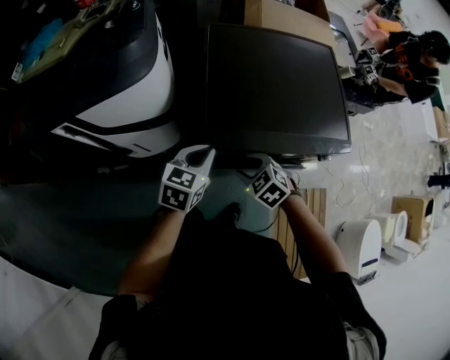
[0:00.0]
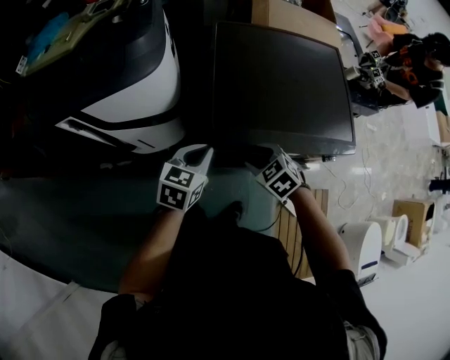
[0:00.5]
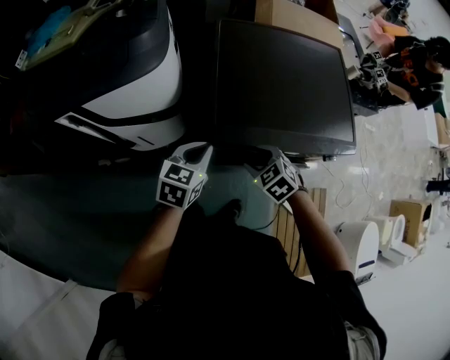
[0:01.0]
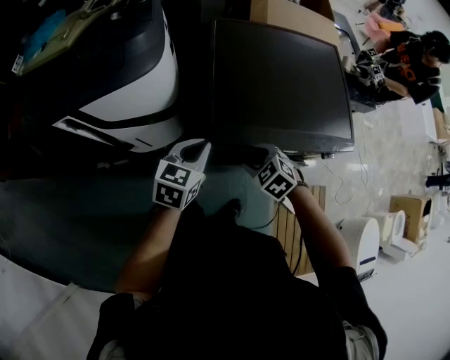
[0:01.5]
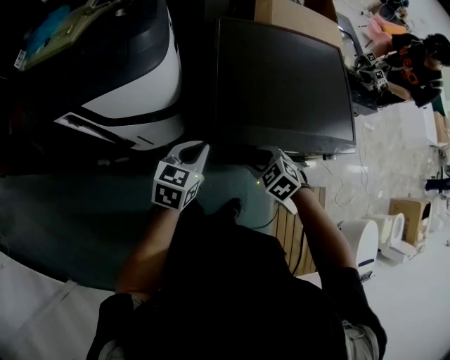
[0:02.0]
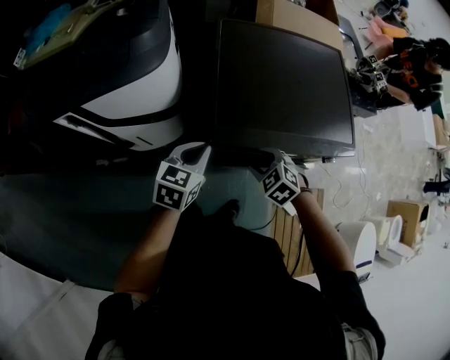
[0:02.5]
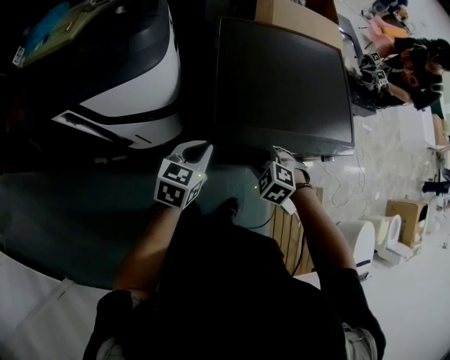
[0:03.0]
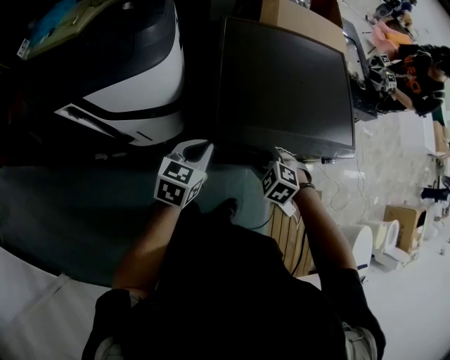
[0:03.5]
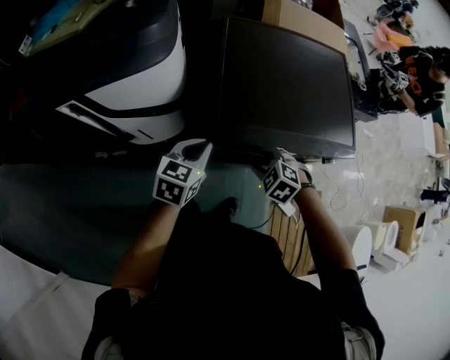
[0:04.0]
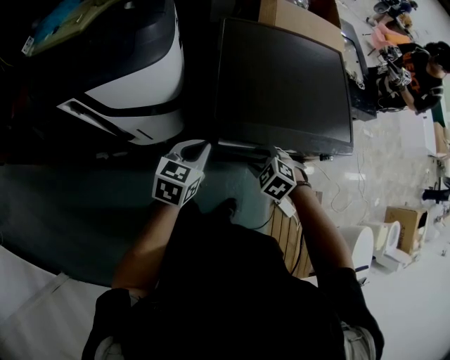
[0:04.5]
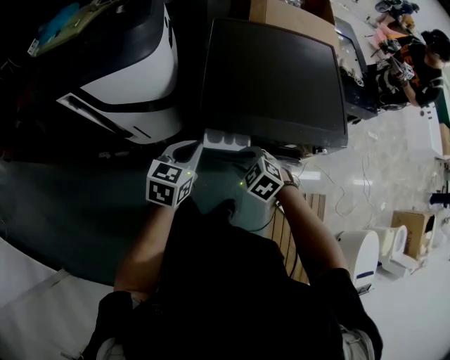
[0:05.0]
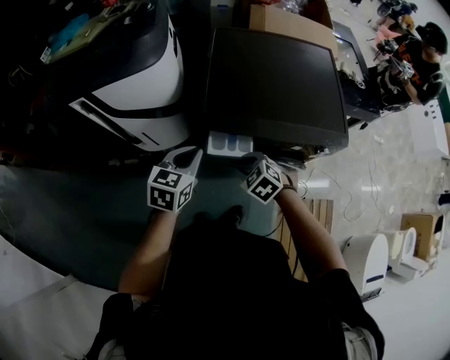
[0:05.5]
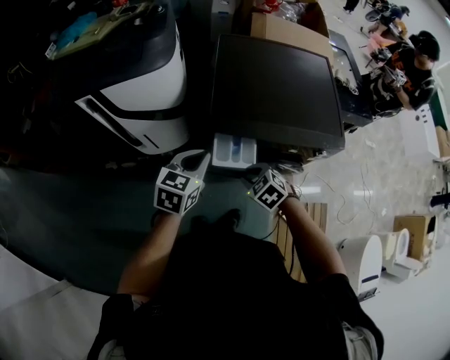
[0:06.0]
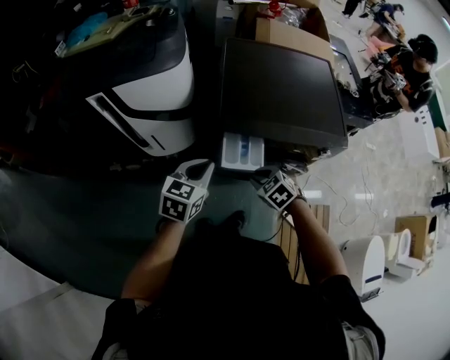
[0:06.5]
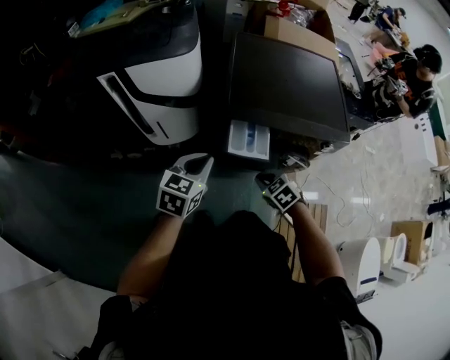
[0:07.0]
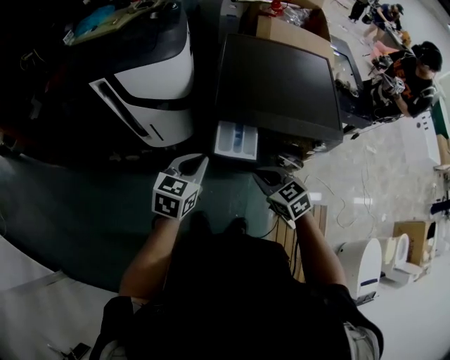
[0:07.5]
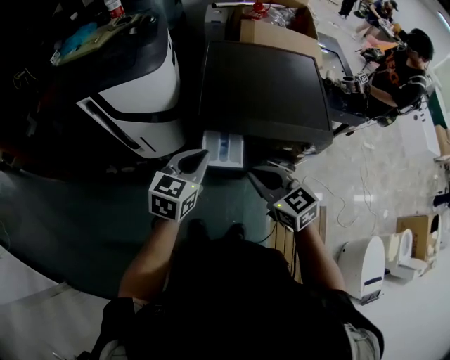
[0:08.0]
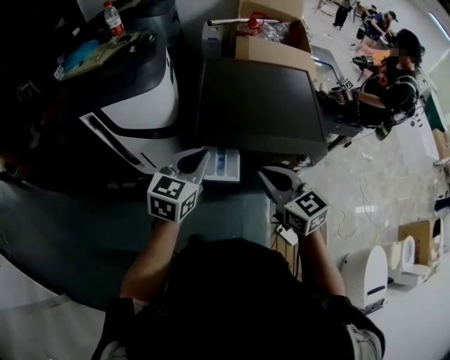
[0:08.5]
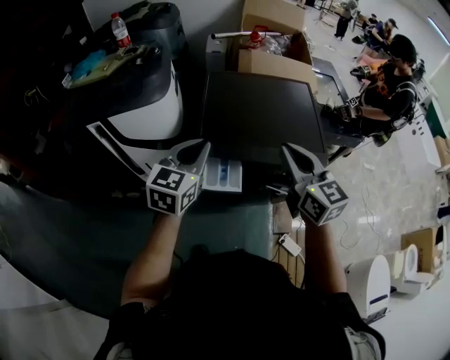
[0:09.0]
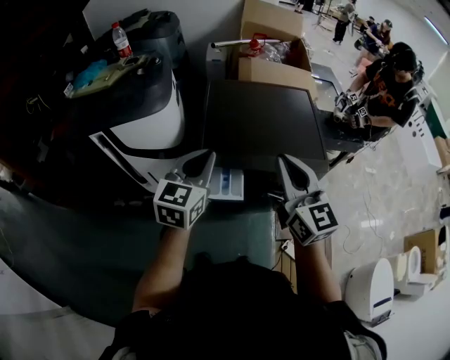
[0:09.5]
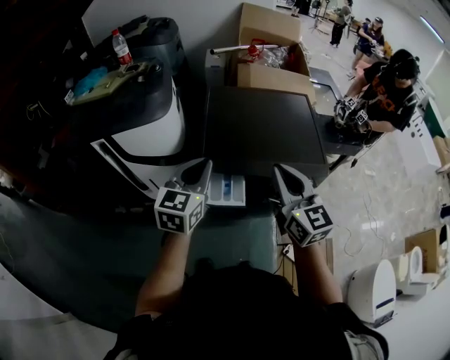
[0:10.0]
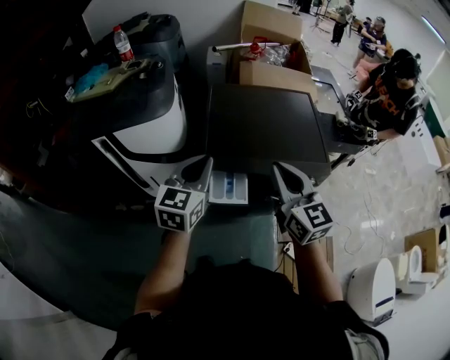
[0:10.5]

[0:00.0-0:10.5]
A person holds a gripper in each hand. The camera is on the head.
0:00.0 to 0:02.0: There are only small adjustments of the grippers.
0:02.0 to 0:04.0: The grippers make only small movements.
0:04.0 to 0:06.5: Both grippers travel together backward, some 15 cm.
0:06.5 to 0:08.5: The right gripper heads upward, covering roughly 25 cm, angles its fingers upward, by roughly 40 degrees, and closes its fingers; the left gripper moves upward and to the right, roughly 15 cm.
0:08.5 to 0:10.5: The left gripper heads upward, covering roughly 5 cm. Meanwhile the right gripper is displaced upward by some 10 cm, and swivels approximately 20 degrees.

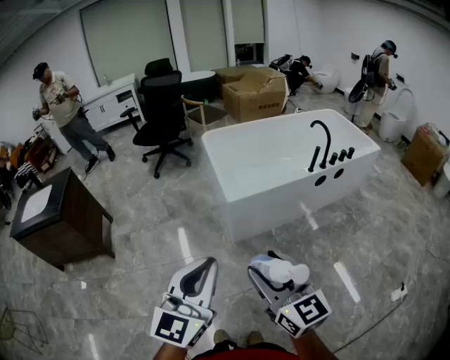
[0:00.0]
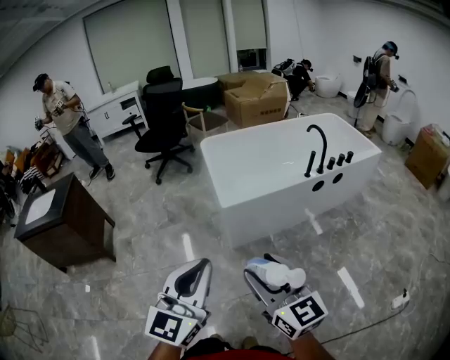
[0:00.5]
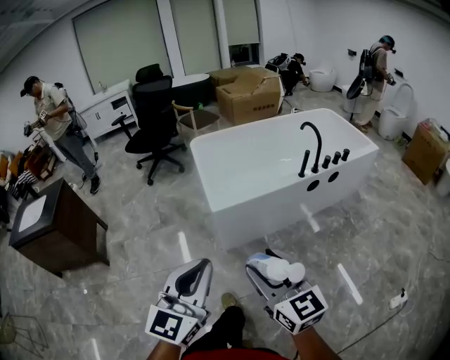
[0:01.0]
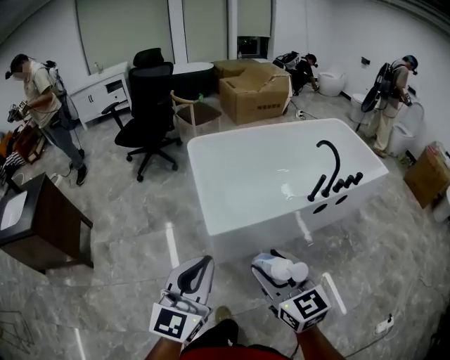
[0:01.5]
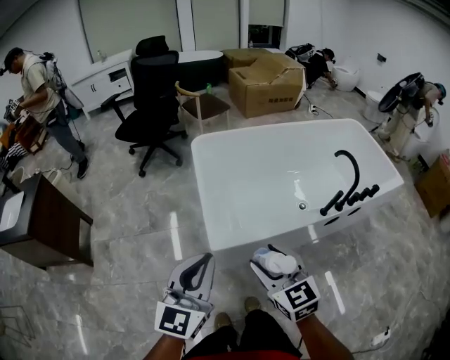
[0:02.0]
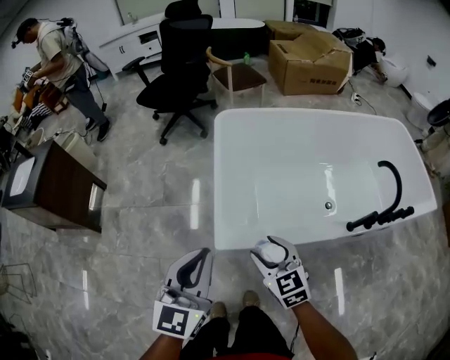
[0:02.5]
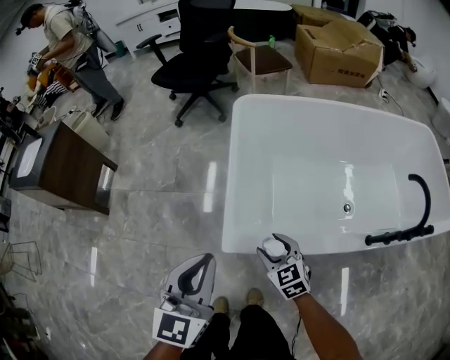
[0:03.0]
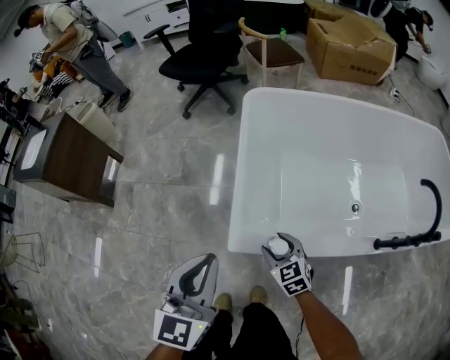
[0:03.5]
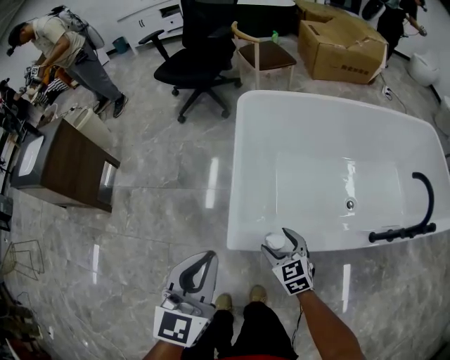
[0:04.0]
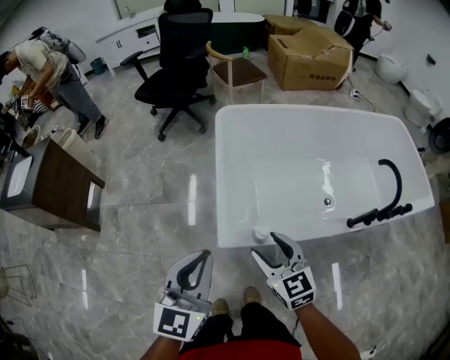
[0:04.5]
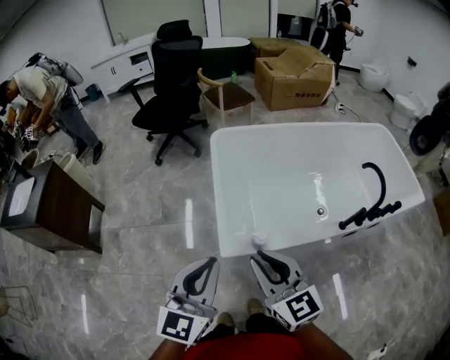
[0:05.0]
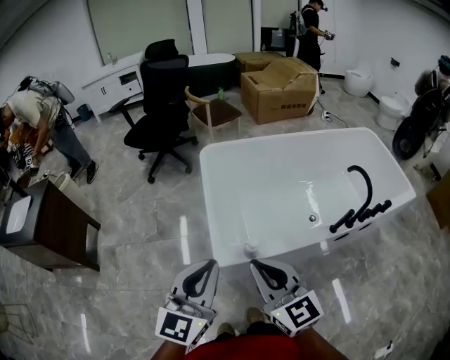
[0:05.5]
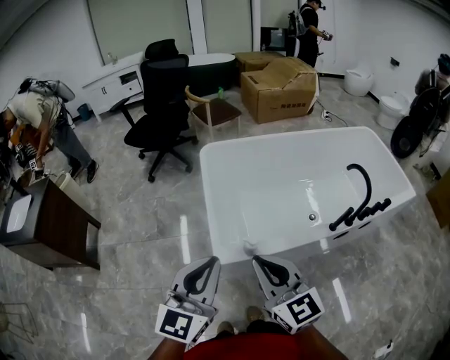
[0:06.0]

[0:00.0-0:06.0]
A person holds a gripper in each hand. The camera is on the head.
0:00.0 to 0:02.0: Both grippers are carried forward, some 40 cm. The right gripper rotates roughly 20 degrees.
0:02.0 to 0:04.0: The left gripper moves forward and downward, roughly 15 cm, and rotates some 20 degrees, while the right gripper heads downward and forward, covering some 35 cm, and swivels roughly 20 degrees.
0:04.0 to 0:06.0: The right gripper moves upward and backward, roughly 35 cm, tilts its fingers about 30 degrees upward, and closes its fingers. Meanwhile the left gripper moves upward and backward, about 15 cm, and rotates approximately 20 degrees.

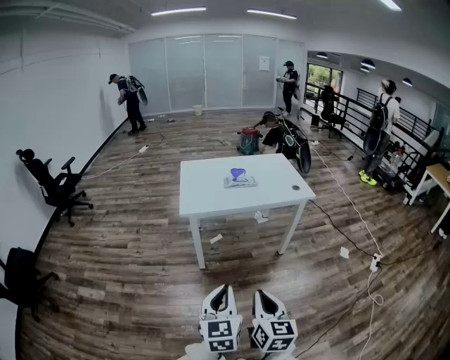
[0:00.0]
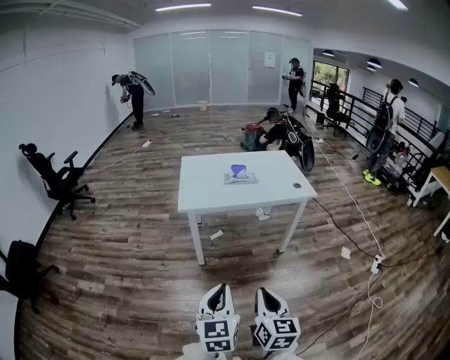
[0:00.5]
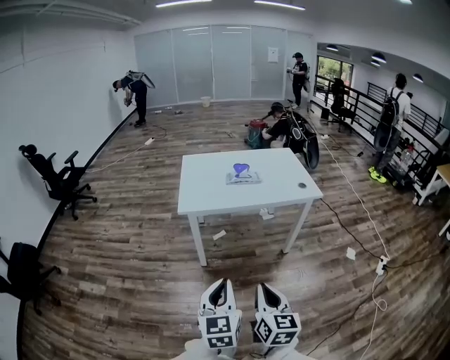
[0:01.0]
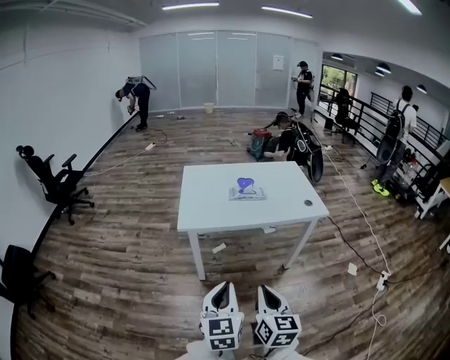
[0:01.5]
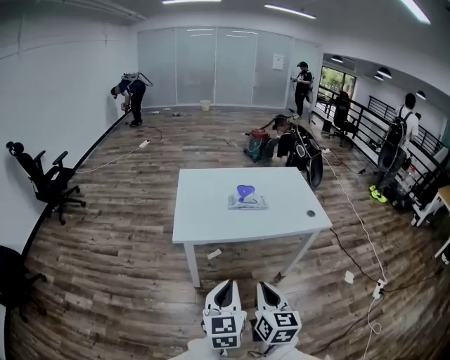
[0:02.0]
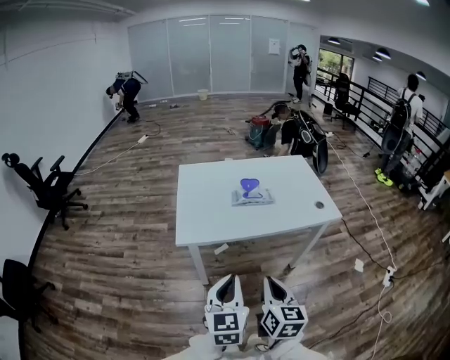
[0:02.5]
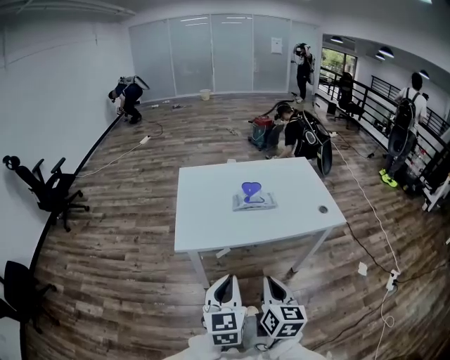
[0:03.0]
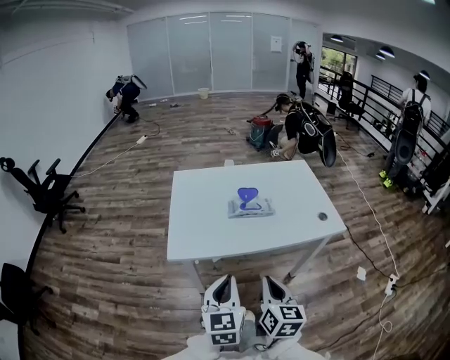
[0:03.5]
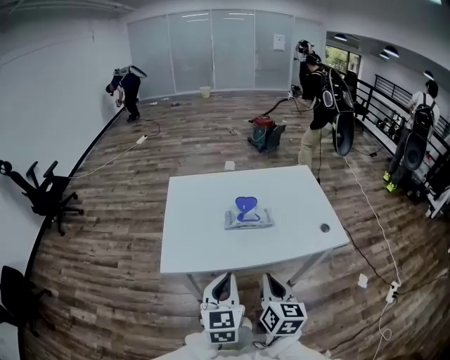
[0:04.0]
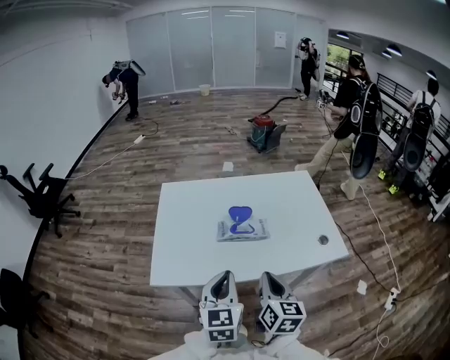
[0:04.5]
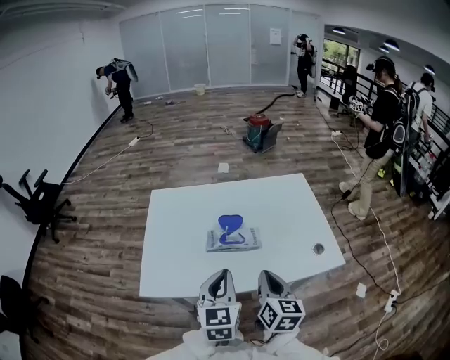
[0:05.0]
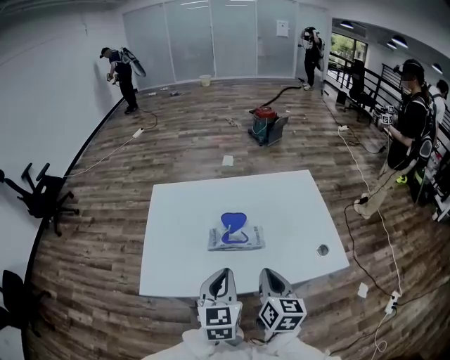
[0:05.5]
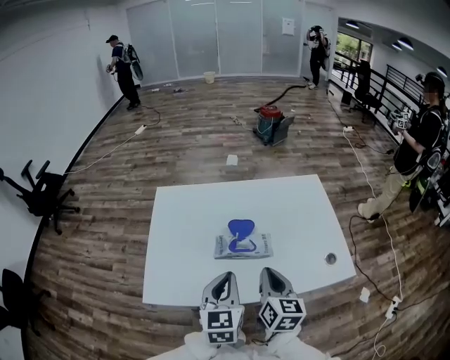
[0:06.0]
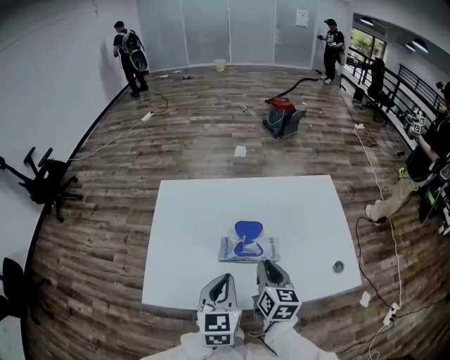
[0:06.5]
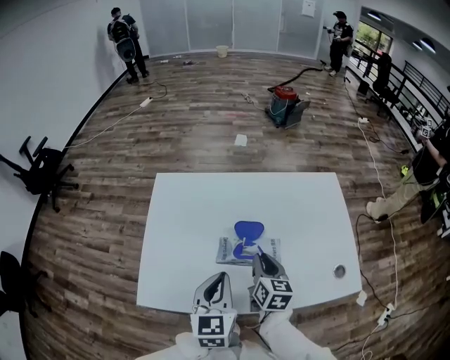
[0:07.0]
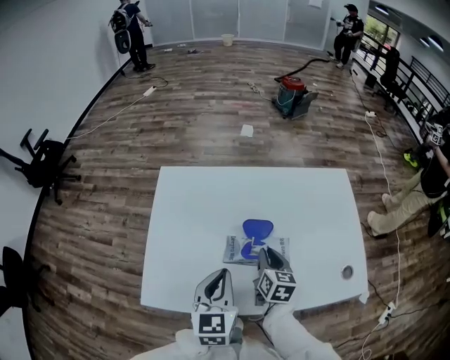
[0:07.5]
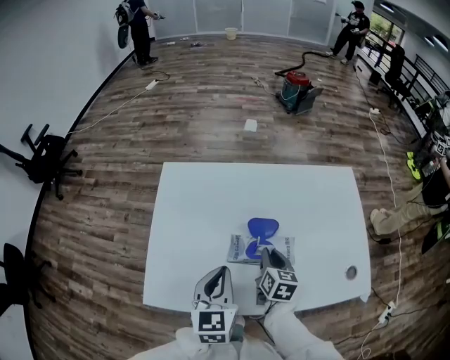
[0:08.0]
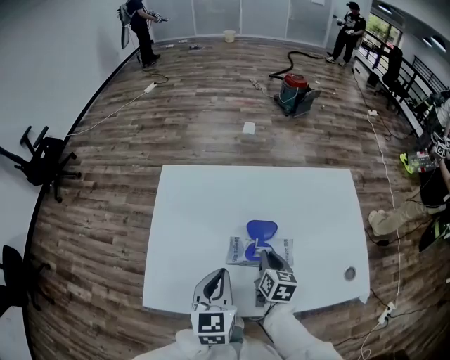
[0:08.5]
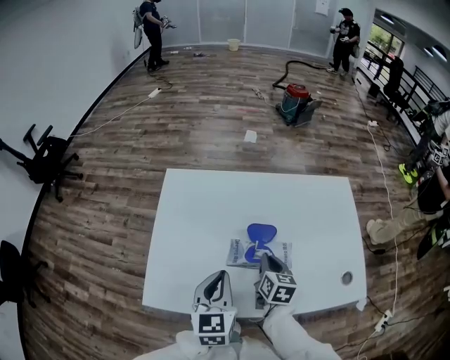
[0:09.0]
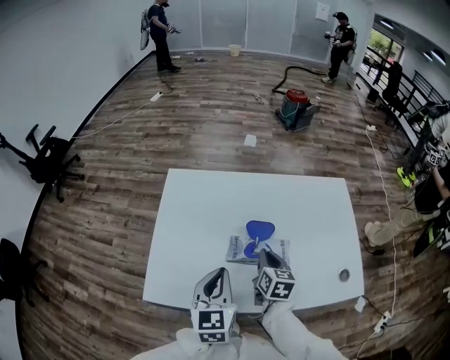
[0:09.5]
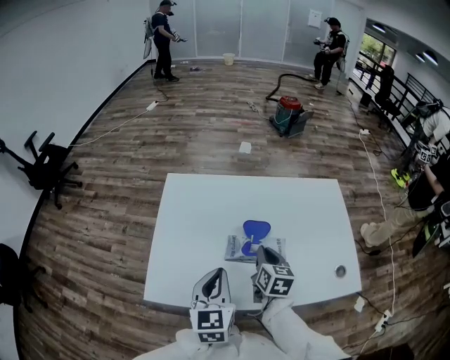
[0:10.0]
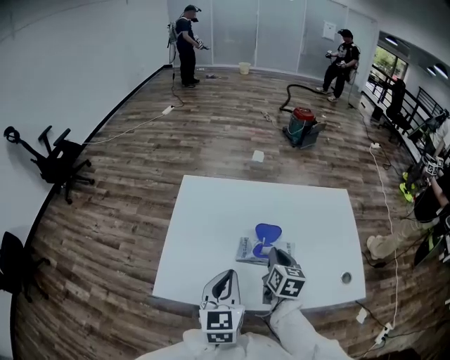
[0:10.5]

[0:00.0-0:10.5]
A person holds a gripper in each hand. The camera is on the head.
0:00.0 to 0:02.0: The grippers both shift forward by about 25 cm.
0:02.0 to 0:04.0: The two grippers go some 20 cm forward.
0:04.0 to 0:06.5: Both grippers move forward, approximately 20 cm.
0:06.5 to 0:08.5: The right gripper is displaced downward and forward by some 10 cm; the left gripper travels forward by approximately 5 cm.
0:08.5 to 0:10.5: The left gripper ends up approximately 5 cm from where it was, while the right gripper travels upward by some 10 cm.
